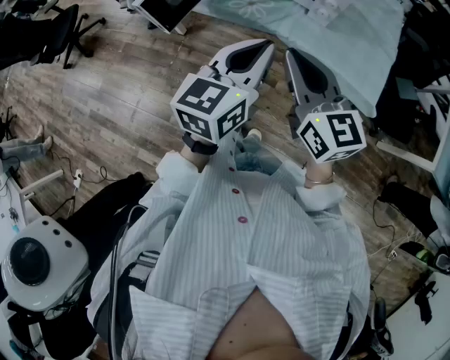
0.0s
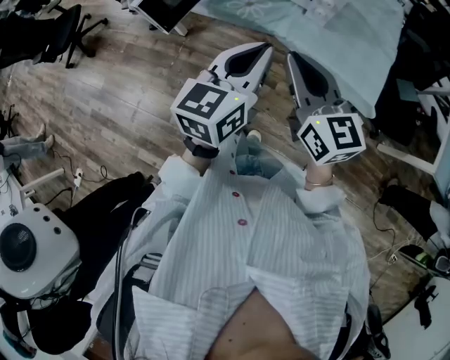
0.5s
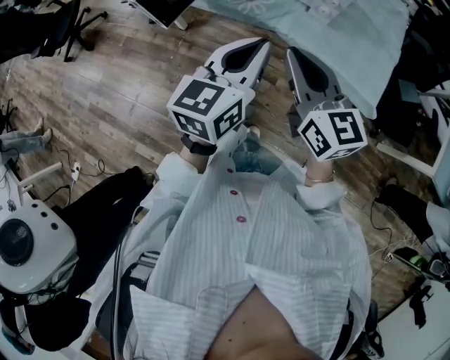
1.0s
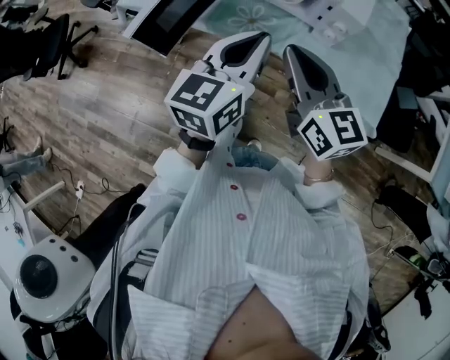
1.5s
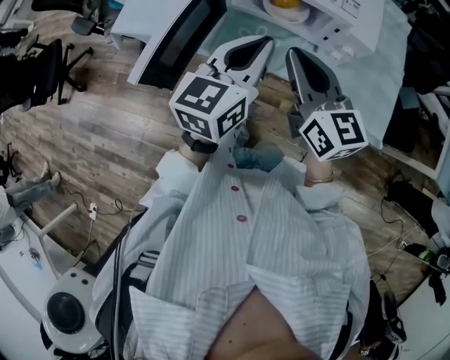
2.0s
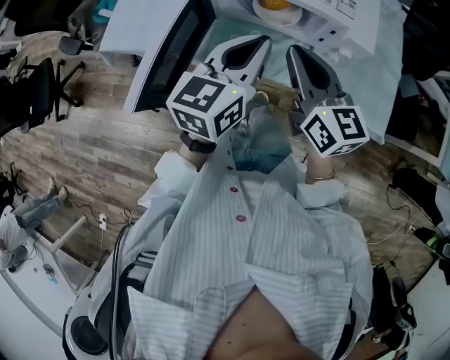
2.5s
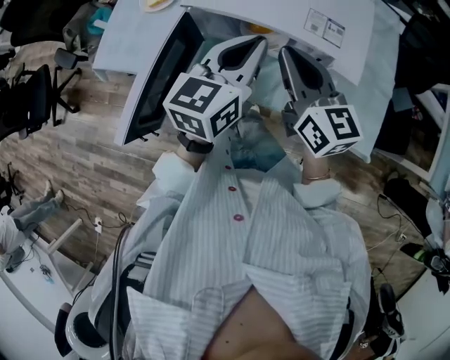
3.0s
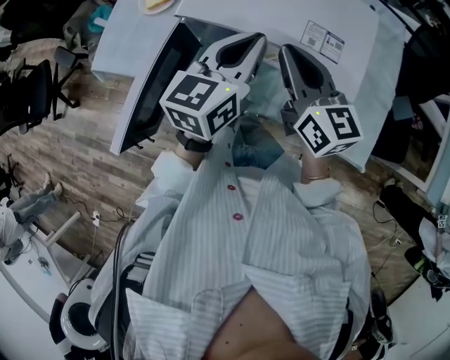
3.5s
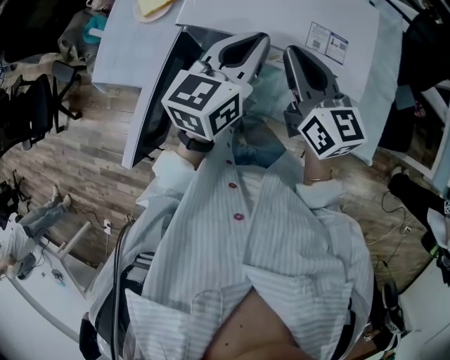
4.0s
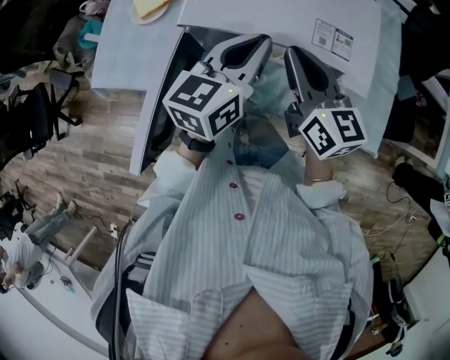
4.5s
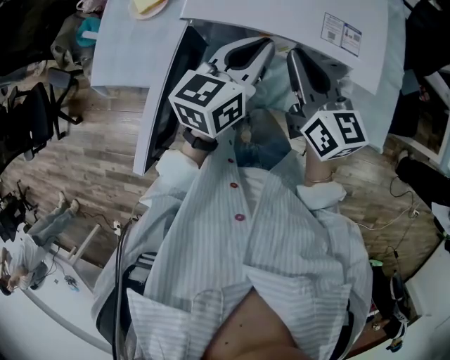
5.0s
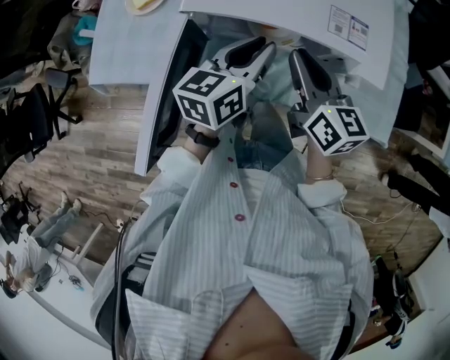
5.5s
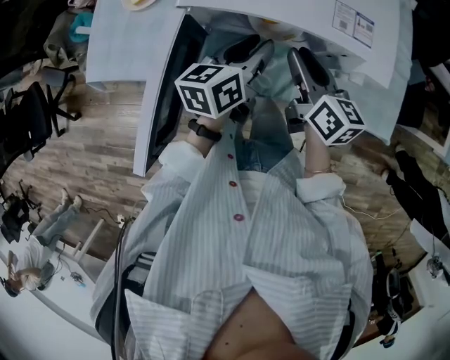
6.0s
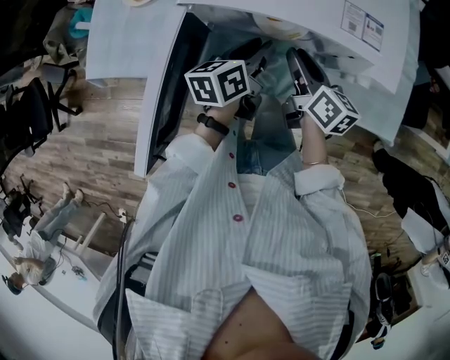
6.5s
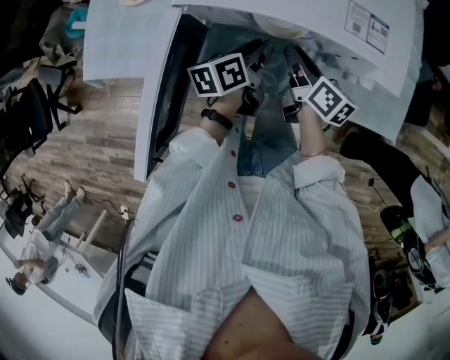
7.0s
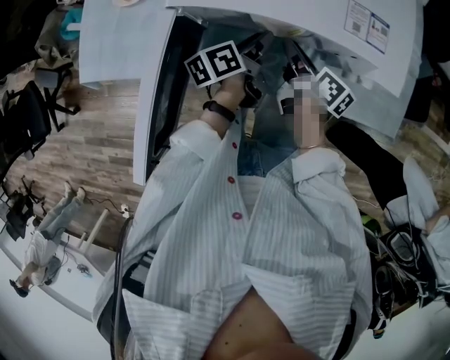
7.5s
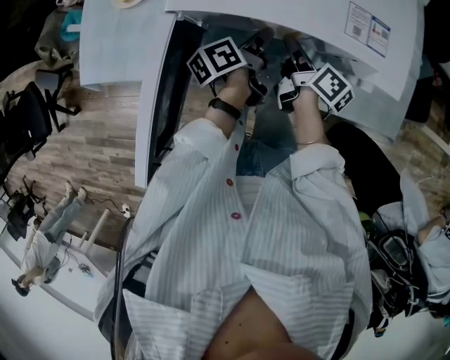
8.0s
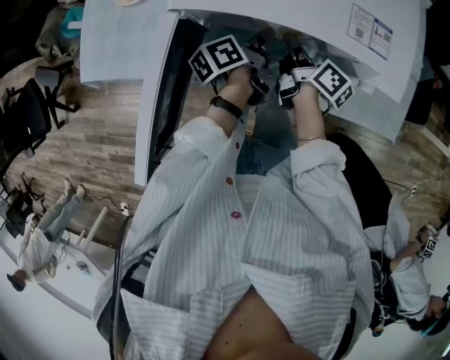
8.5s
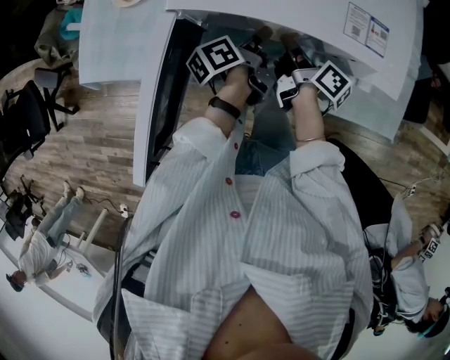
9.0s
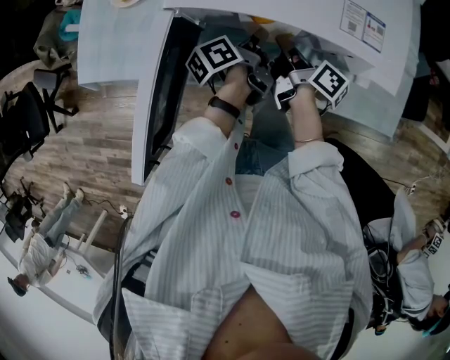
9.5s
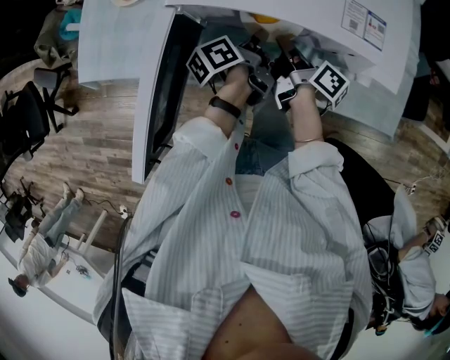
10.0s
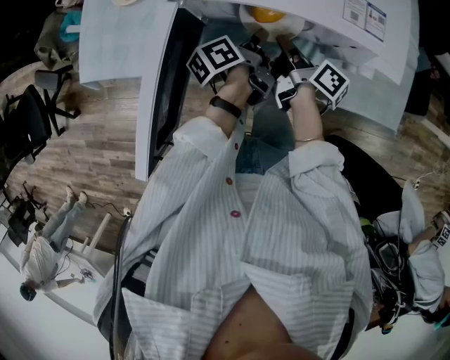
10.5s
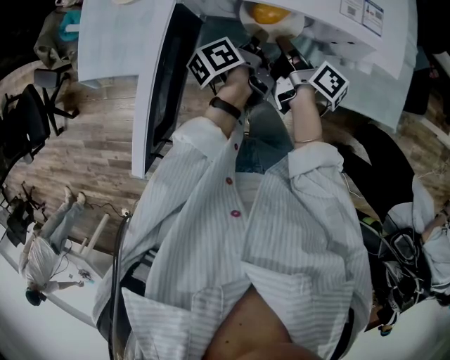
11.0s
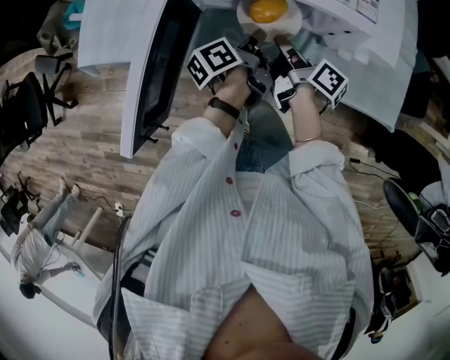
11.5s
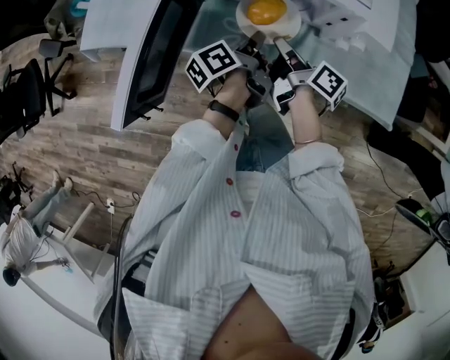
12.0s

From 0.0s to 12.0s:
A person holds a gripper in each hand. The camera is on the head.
From 0.0s to 2.0s: Both grippers travel together forward, approximately 20 cm.
From 2.0s to 4.0s: Both grippers move forward, about 20 cm.
From 4.0s to 6.0s: Both grippers travel together downward, some 10 cm. The right gripper changes its angle by about 20 degrees; the left gripper changes its angle by about 20 degrees, and opens its fingers.
From 6.0s to 8.0s: Both grippers move downward, roughly 10 cm. The right gripper rotates roughly 40 degrees, while the left gripper rotates around the line of its fingers by about 40 degrees, counterclockwise from behind.
From 8.0s to 10.0s: The left gripper closes its fingers.
From 10.0s to 12.0s: Both grippers travel together backward, roughly 10 cm.

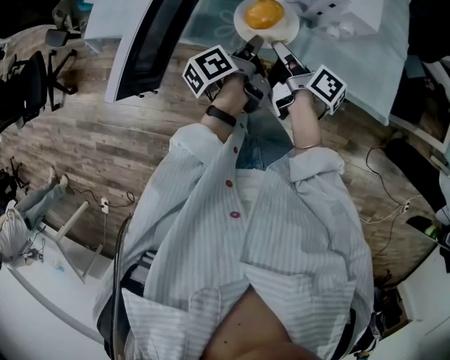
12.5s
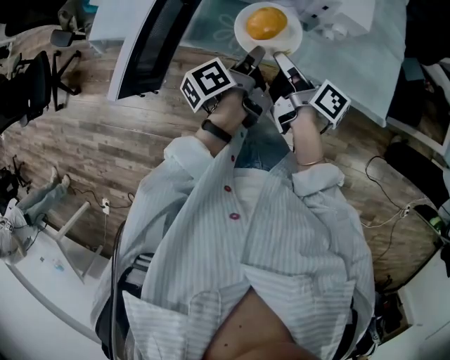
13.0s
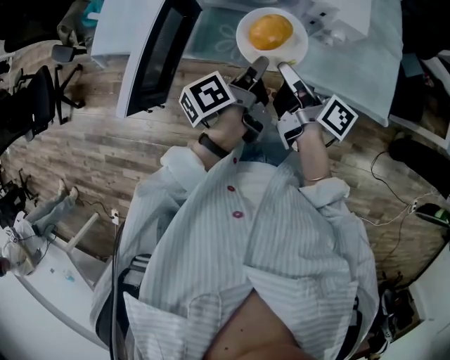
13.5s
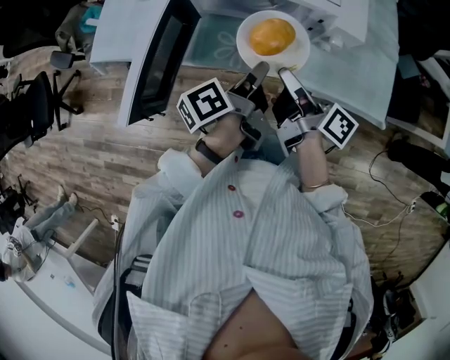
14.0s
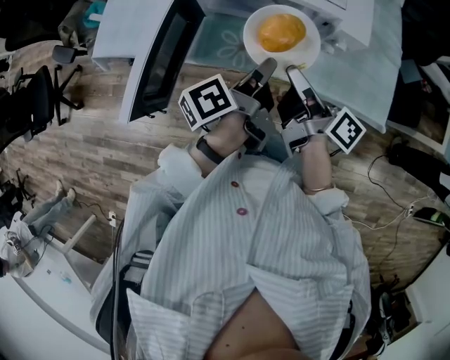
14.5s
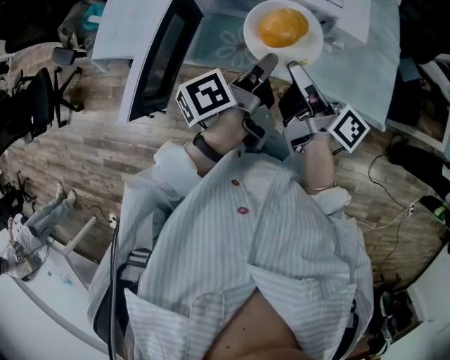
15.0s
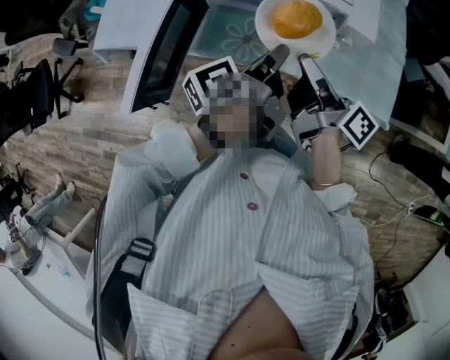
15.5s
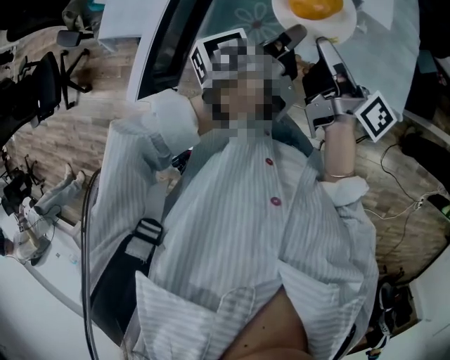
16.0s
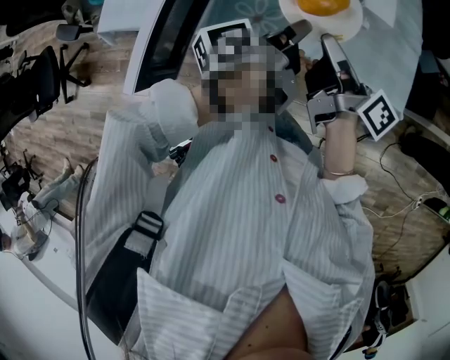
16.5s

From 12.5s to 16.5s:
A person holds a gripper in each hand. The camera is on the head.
From 12.5s to 14.5s: The grippers both shift upward by some 10 cm.
From 14.5s to 16.5s: There are only small adjustments of the grippers.

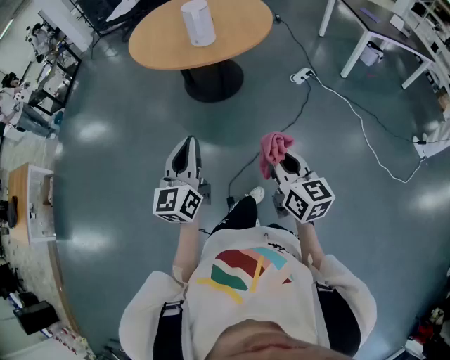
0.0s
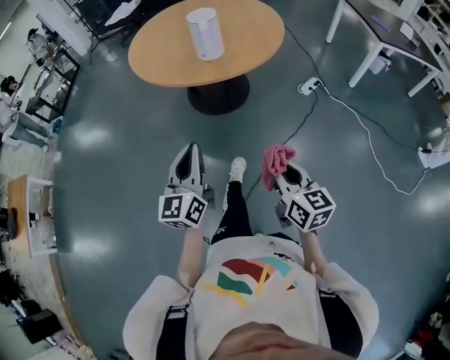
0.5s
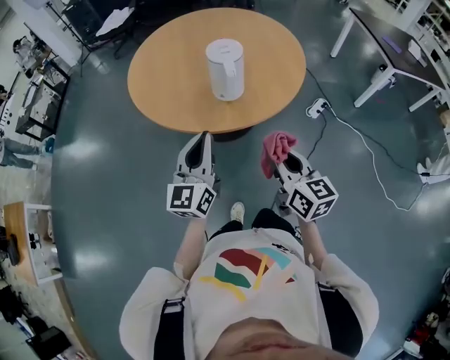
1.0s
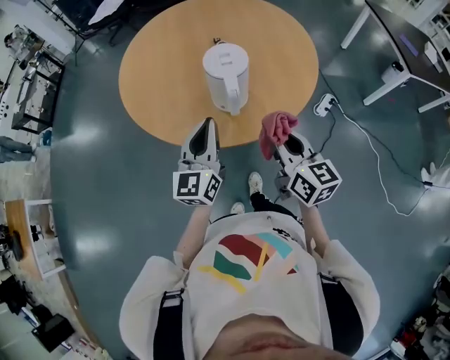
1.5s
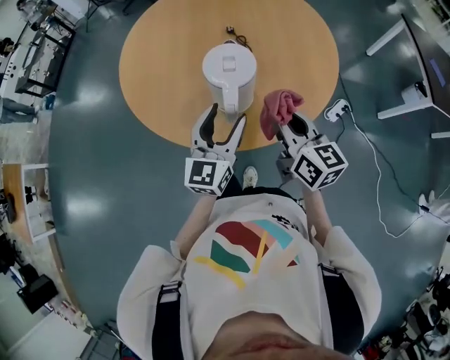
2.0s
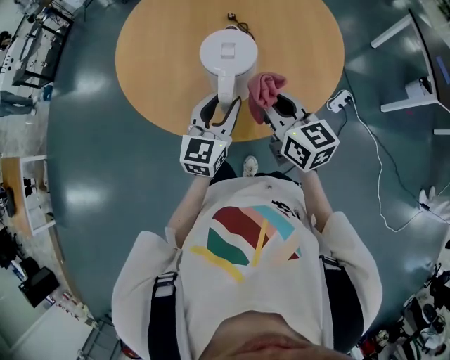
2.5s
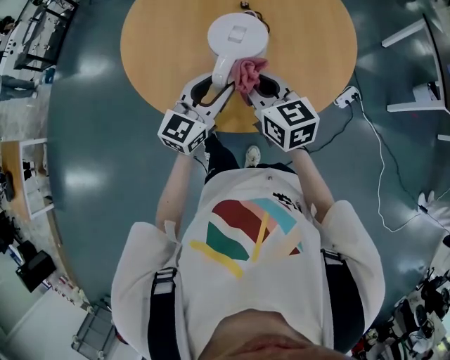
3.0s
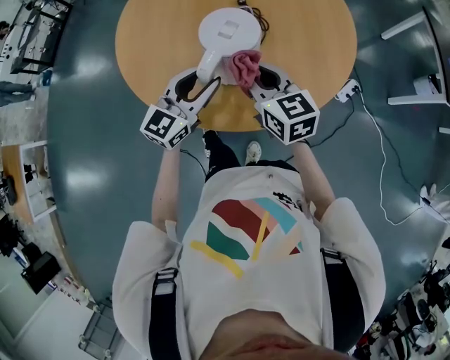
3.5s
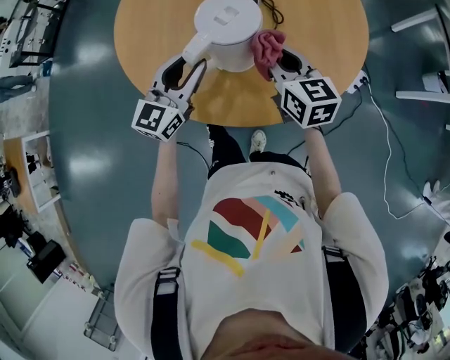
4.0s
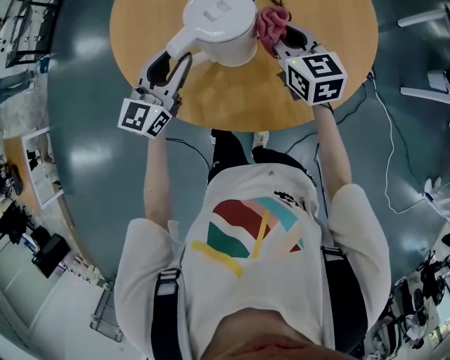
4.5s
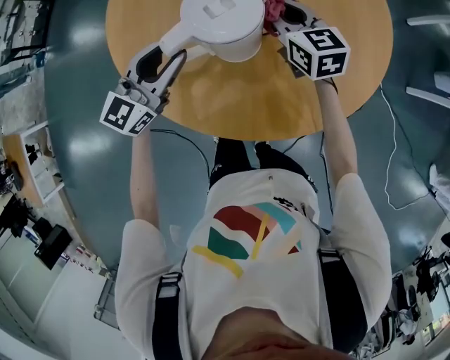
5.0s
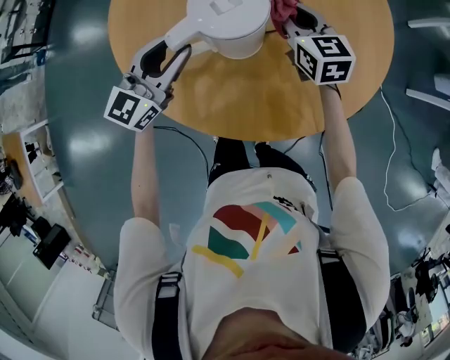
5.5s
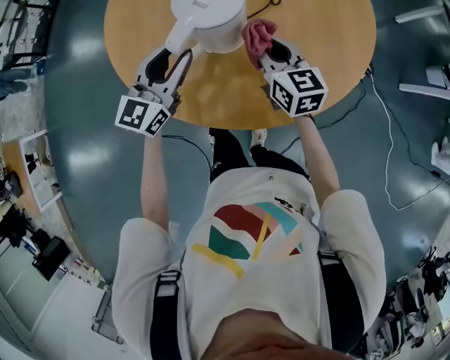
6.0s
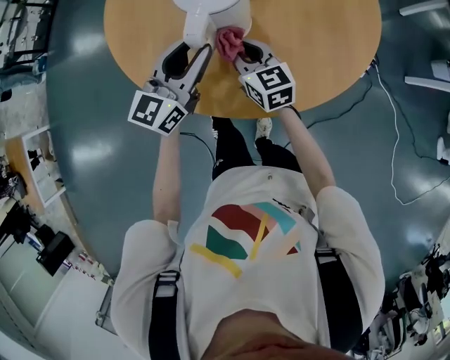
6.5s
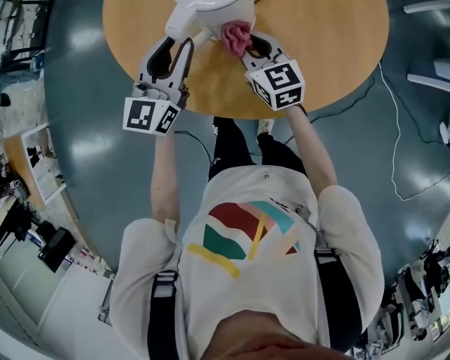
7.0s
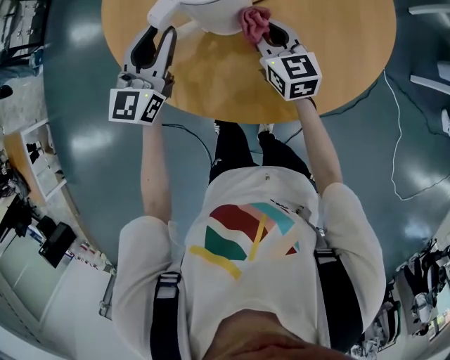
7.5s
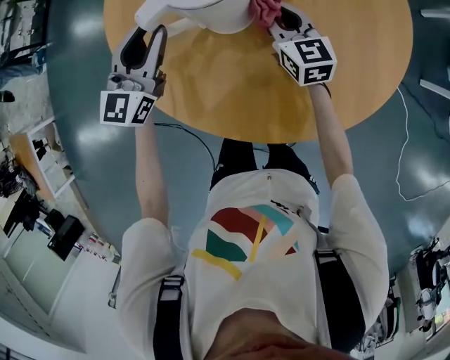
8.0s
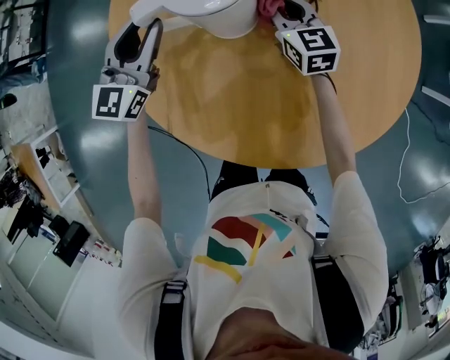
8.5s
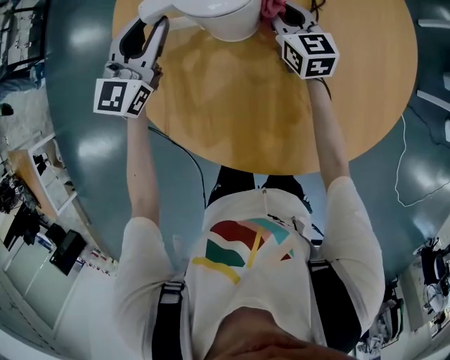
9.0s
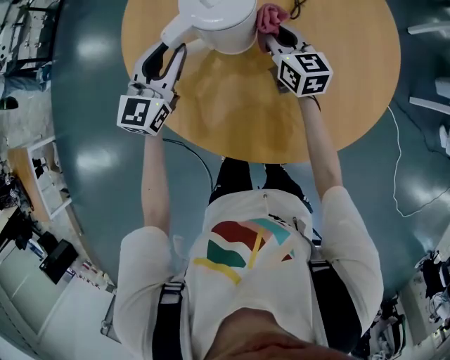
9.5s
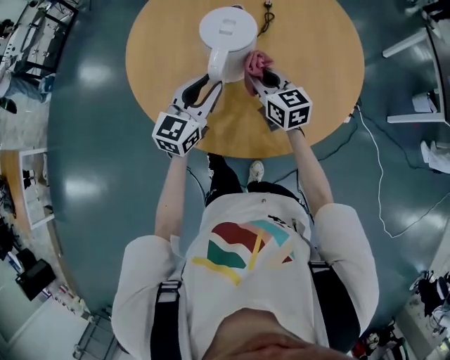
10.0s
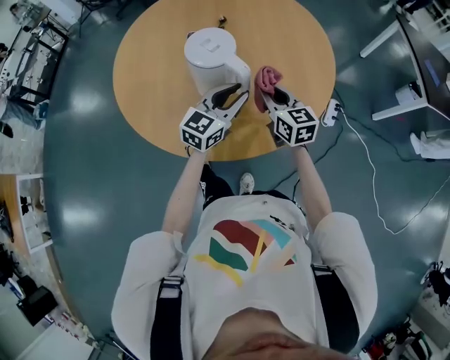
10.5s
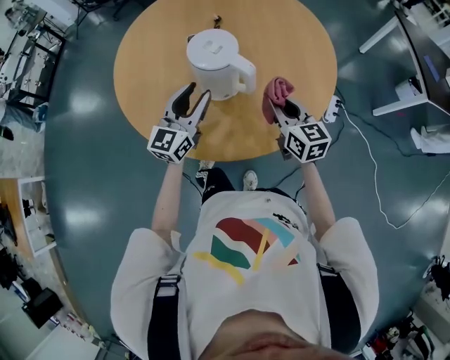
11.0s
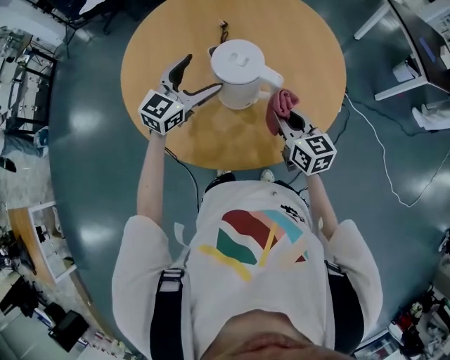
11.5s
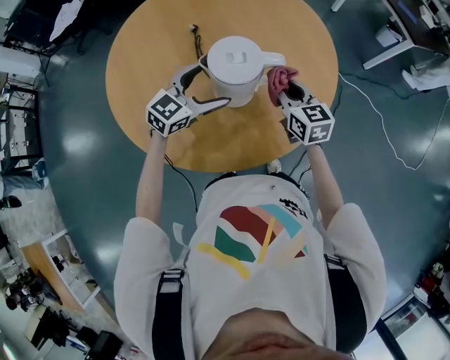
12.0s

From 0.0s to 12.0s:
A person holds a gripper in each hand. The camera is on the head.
From 0.0s to 2.0s: The pair of grippers is taken forward, some 70 cm. The left gripper opens up.
From 2.0s to 4.0s: The left gripper heads to the left and forward, covering roughly 15 cm; the right gripper is displaced forward, to the left and downward by approximately 15 cm.
From 4.0s to 6.0s: The right gripper travels downward by approximately 5 cm, and reaches approximately 20 cm forward, then returns.
From 6.0s to 8.0s: The right gripper moves forward, about 15 cm. The left gripper travels forward and to the left by roughly 15 cm.
From 8.0s to 10.0s: The right gripper heads backward, covering approximately 15 cm. Meanwhile the left gripper is displaced backward and to the right by some 20 cm.
From 10.0s to 12.0s: The right gripper rotates roughly 30 degrees; the left gripper rotates approximately 50 degrees, and opens its fingers.
